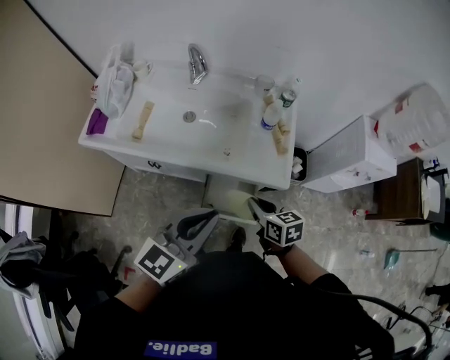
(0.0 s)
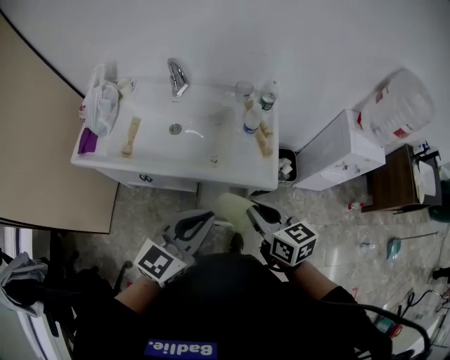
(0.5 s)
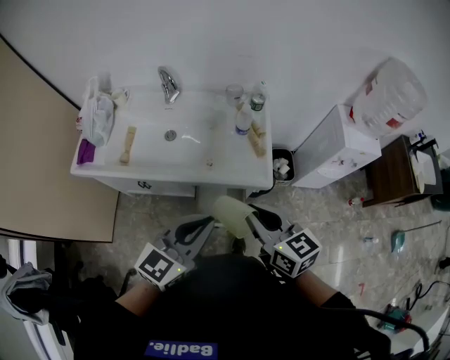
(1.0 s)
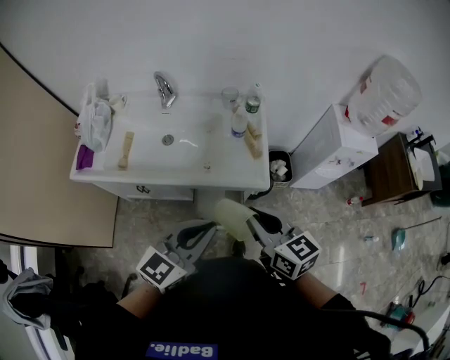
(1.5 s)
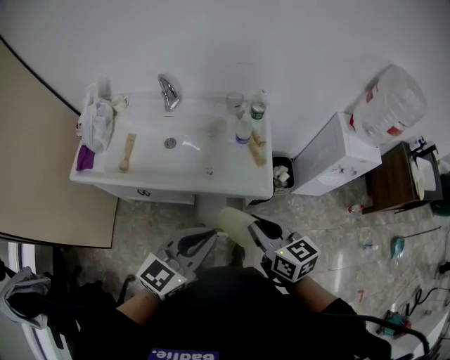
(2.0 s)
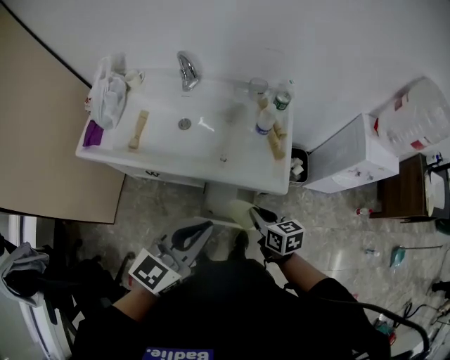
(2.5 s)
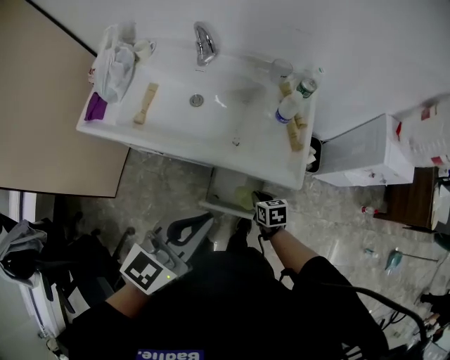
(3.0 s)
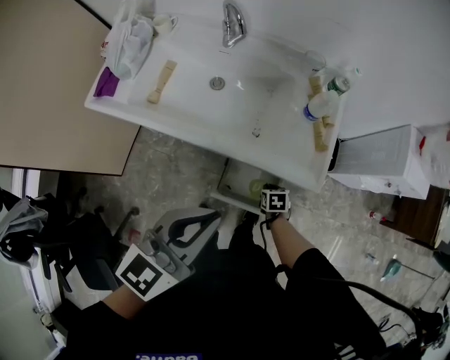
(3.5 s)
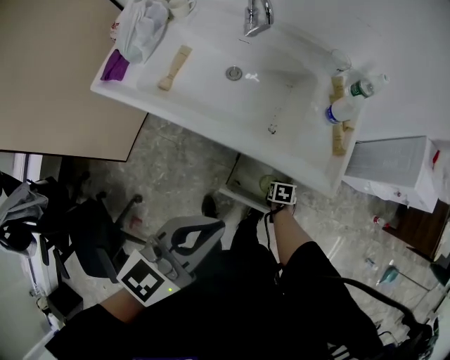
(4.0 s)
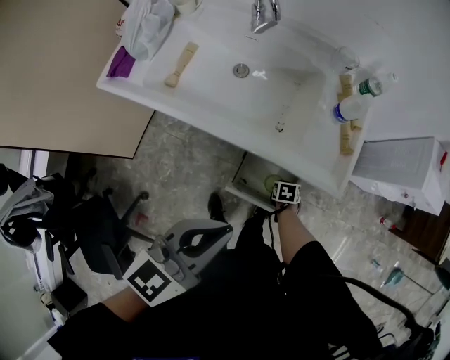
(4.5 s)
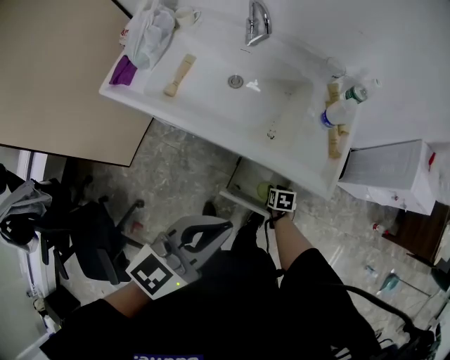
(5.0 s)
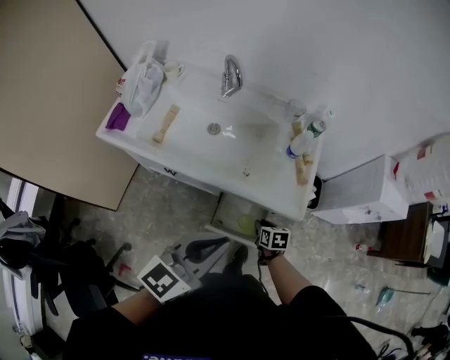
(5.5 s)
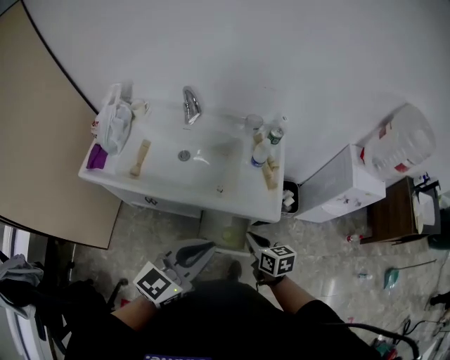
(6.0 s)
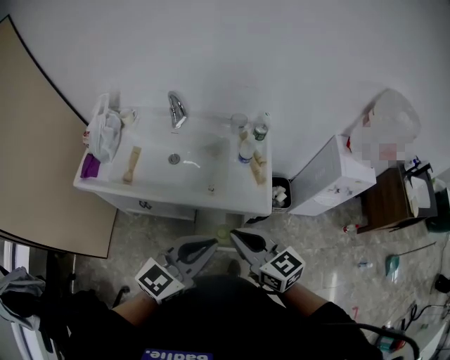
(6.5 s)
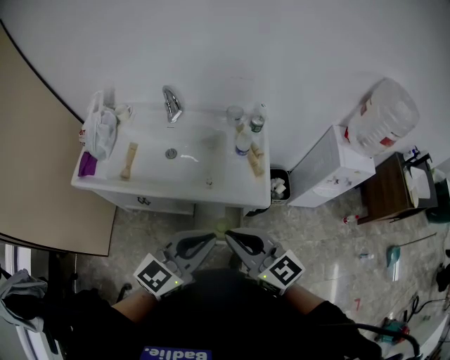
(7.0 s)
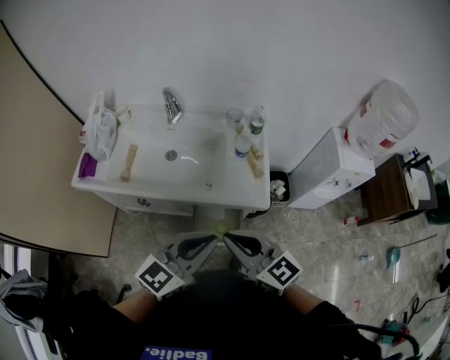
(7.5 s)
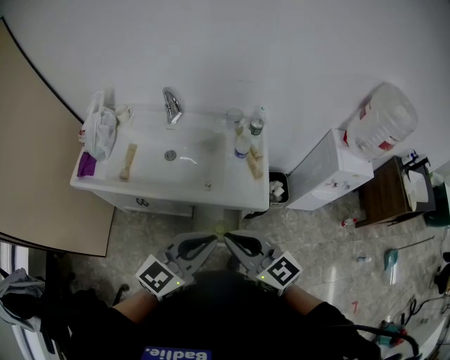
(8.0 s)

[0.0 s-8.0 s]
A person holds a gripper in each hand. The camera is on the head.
0.0 to 2.0 s: The left gripper shifts about 5 cm to the right; the right gripper is displaced upward by roughly 15 cm.
2.0 to 4.0 s: The left gripper changes place by some 15 cm; the right gripper heads downward, covering approximately 50 cm, and tilts its fingers some 60 degrees downward.
4.0 to 6.0 s: The right gripper shifts roughly 35 cm upward, tilts its fingers approximately 40 degrees upward, and opens and closes again. Meanwhile the left gripper shifts some 5 cm upward.
6.0 to 8.0 s: The right gripper heads upward, covering about 20 cm, and turns by roughly 40 degrees.

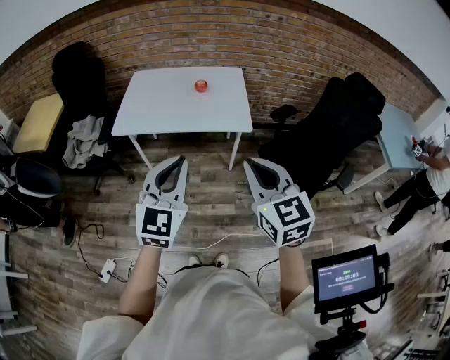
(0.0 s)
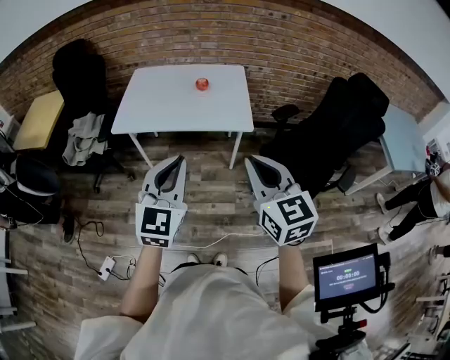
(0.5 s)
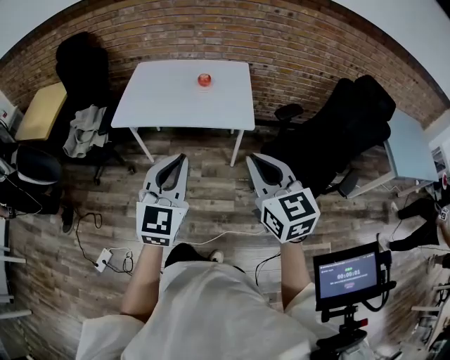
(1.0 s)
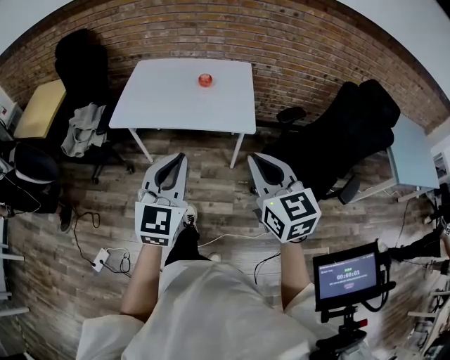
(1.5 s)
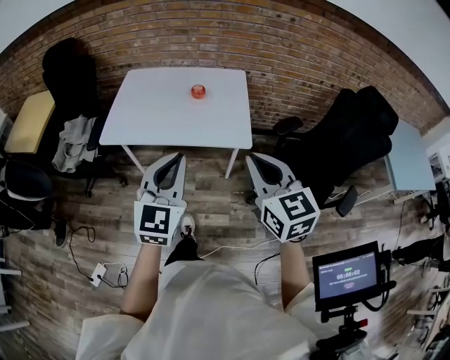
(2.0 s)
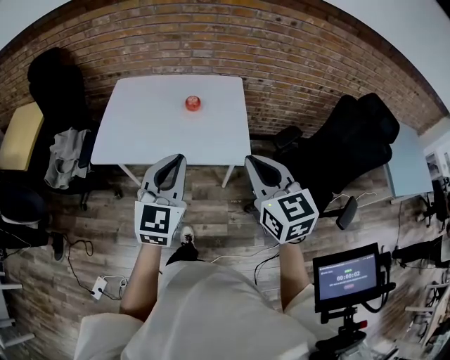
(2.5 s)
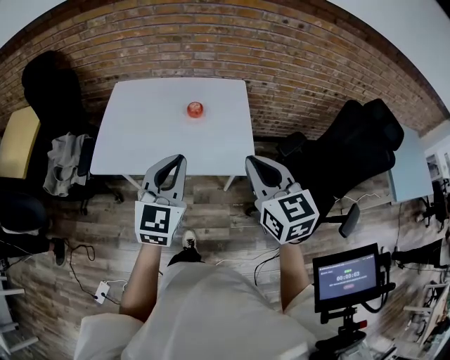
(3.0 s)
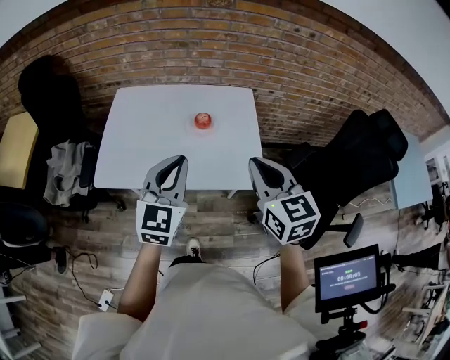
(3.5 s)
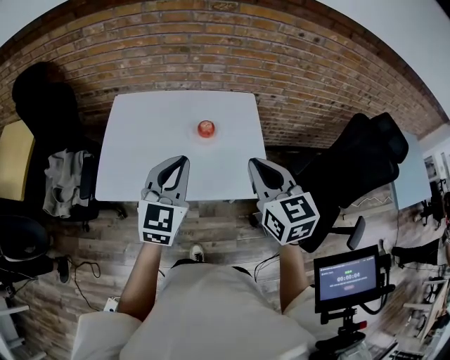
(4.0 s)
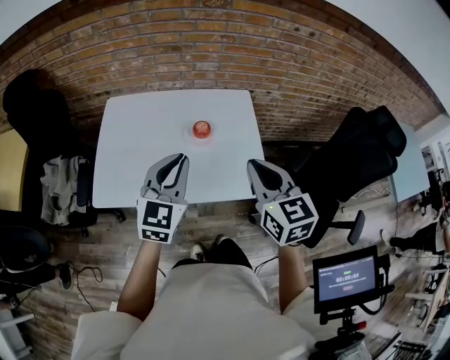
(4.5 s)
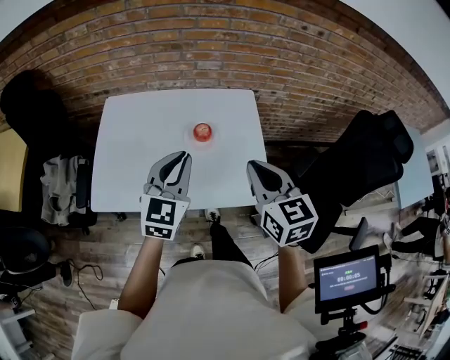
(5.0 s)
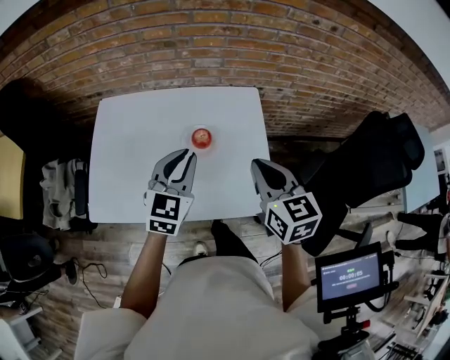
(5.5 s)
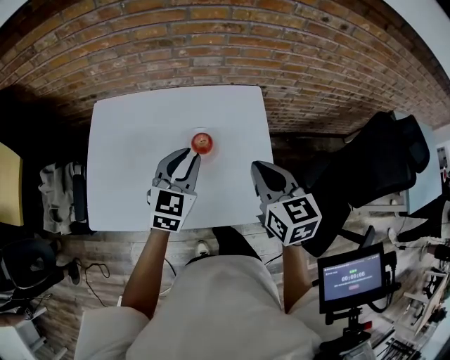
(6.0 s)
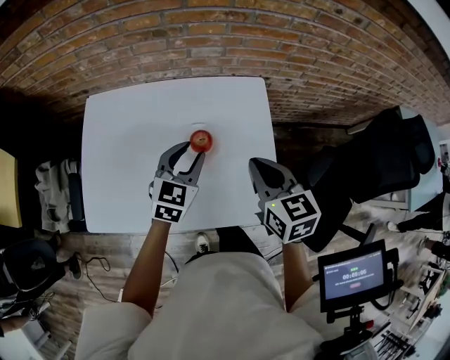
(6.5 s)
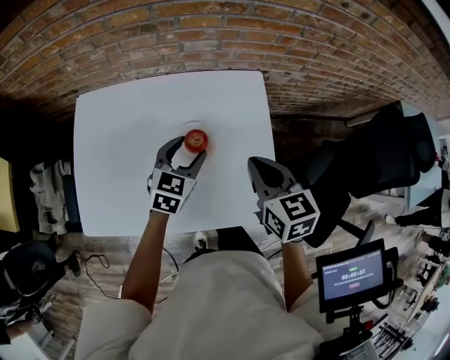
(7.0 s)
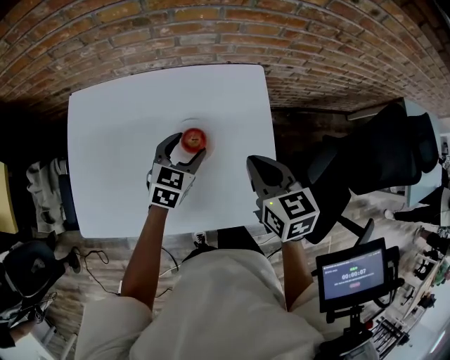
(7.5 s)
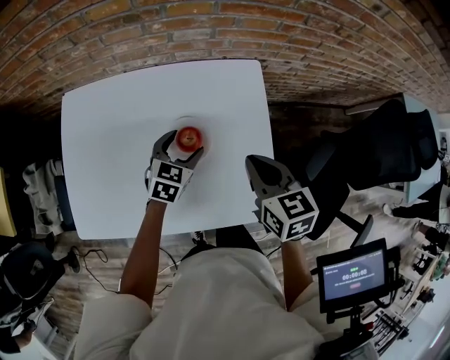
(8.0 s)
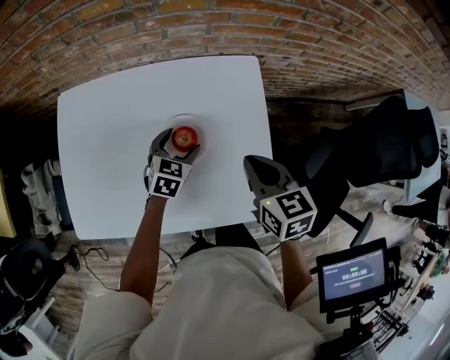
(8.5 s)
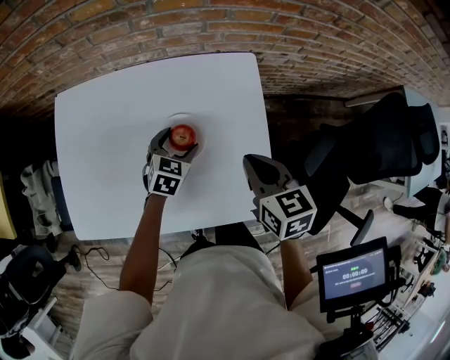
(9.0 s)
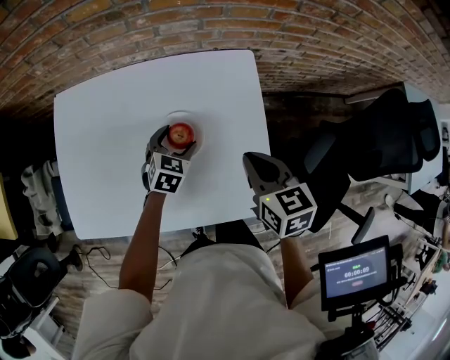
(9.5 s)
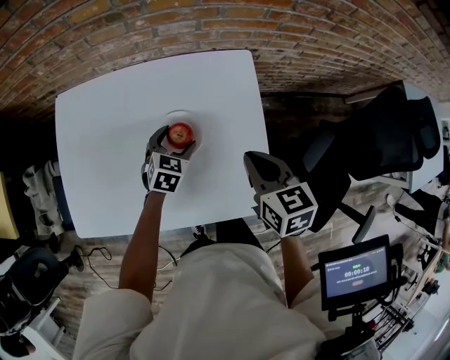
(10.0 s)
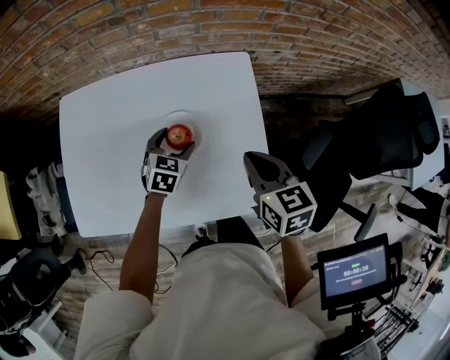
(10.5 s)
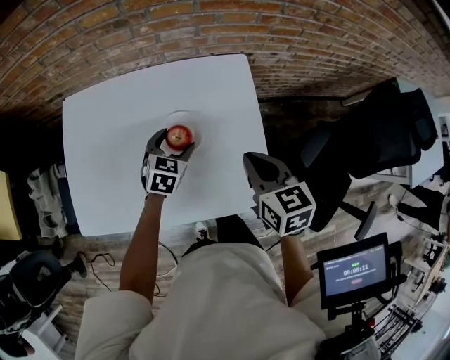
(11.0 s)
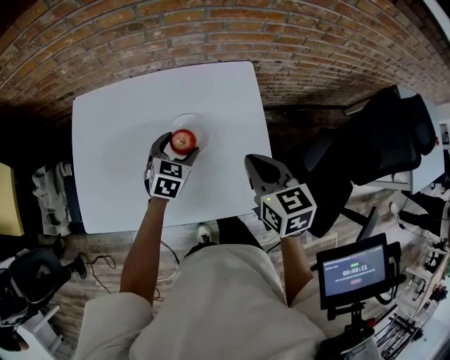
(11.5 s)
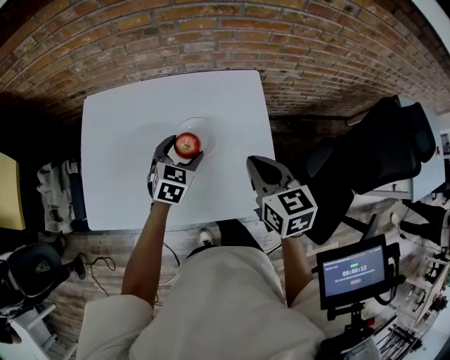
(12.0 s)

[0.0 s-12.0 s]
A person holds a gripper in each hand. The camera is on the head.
0.0 to 2.0 s: Both grippers travel together forward, approximately 15 cm.
2.0 to 4.0 s: Both grippers move forward, about 30 cm.
4.0 to 6.0 s: Both grippers move forward and downward, about 20 cm.
6.0 to 8.0 s: The right gripper travels downward and forward by roughly 10 cm. The left gripper moves downward and forward, about 20 cm, rotates about 20 degrees, and opens its fingers.
8.0 to 10.0 s: The grippers stay close to where they were, moving slightly.
10.0 to 12.0 s: The grippers both shift upward by roughly 10 cm.

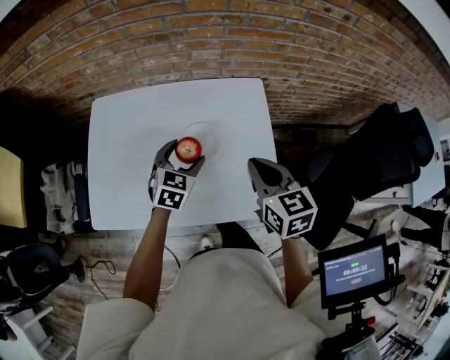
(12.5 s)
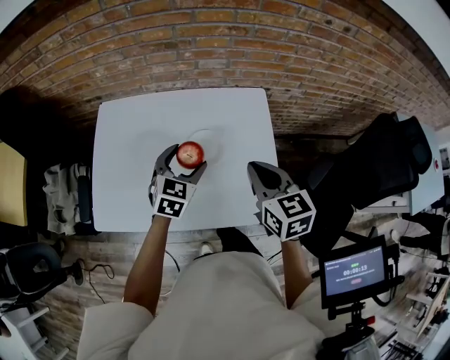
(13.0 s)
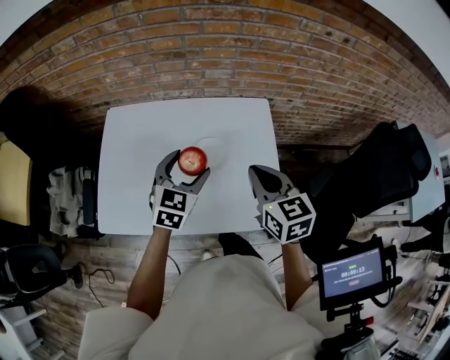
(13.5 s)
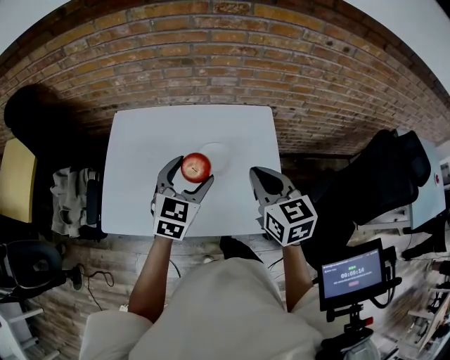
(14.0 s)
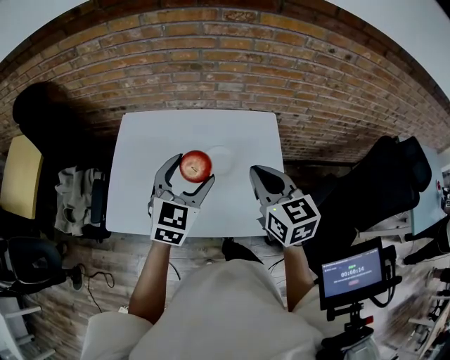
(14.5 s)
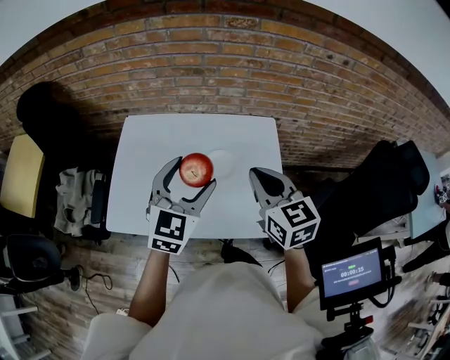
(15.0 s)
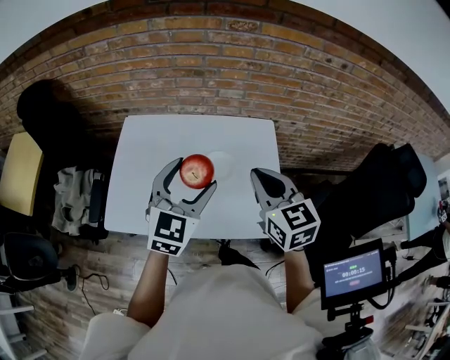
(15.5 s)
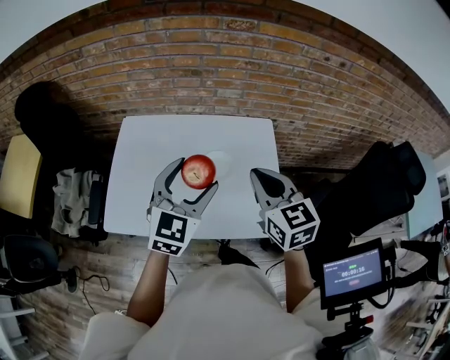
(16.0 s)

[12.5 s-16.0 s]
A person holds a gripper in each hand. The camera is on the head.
12.5 to 14.5 s: The right gripper travels upward by roughly 10 cm, while the left gripper travels upward and backward by approximately 20 cm.
14.5 to 16.0 s: The grippers stay close to where they were, moving slightly.

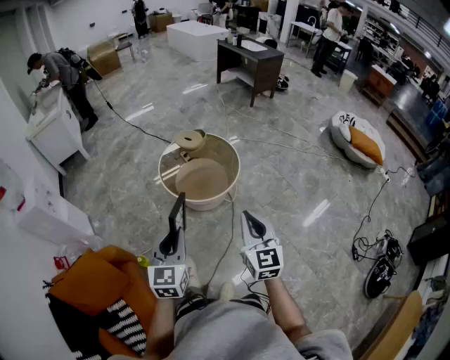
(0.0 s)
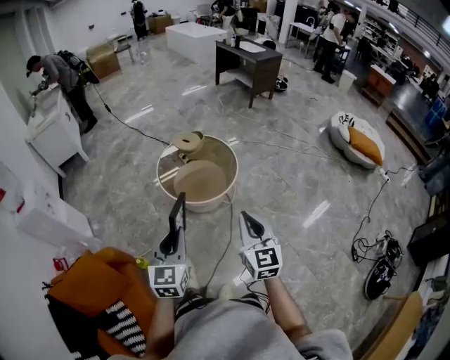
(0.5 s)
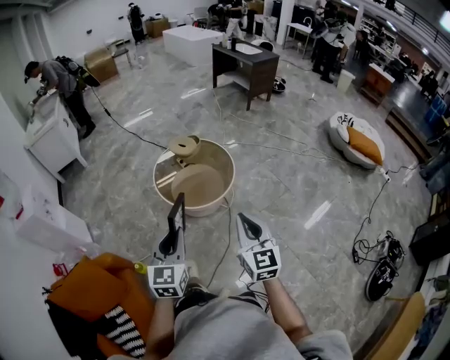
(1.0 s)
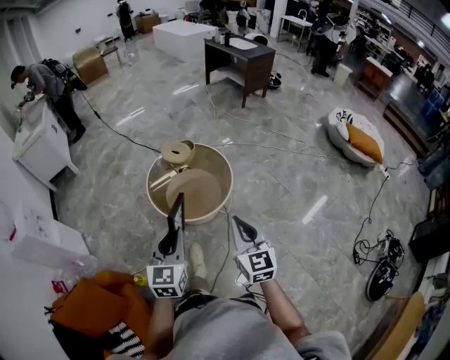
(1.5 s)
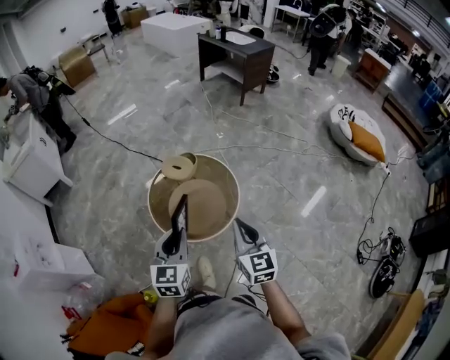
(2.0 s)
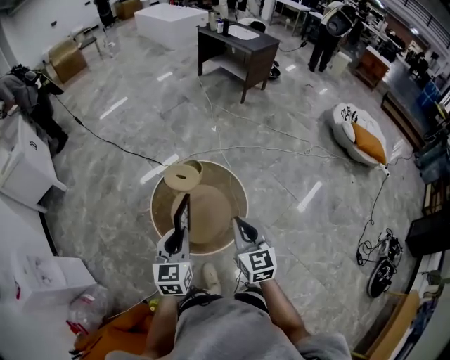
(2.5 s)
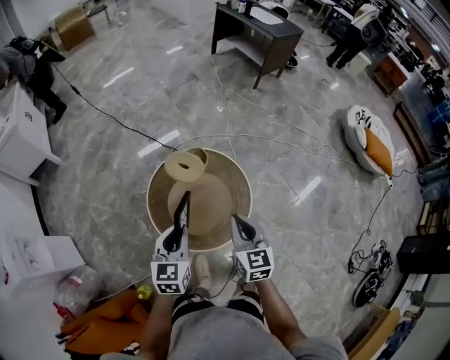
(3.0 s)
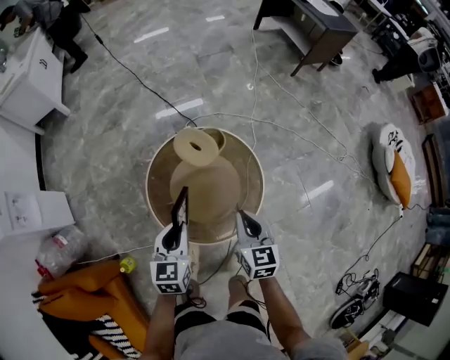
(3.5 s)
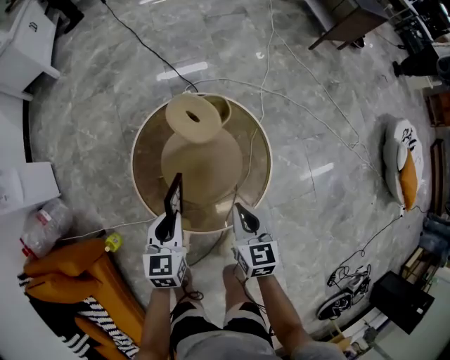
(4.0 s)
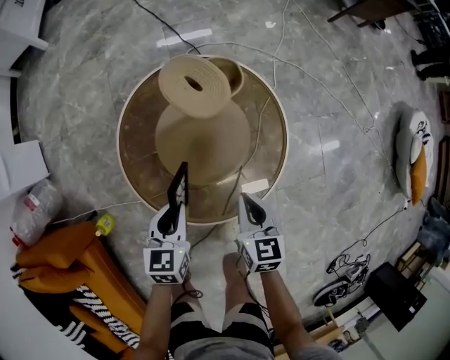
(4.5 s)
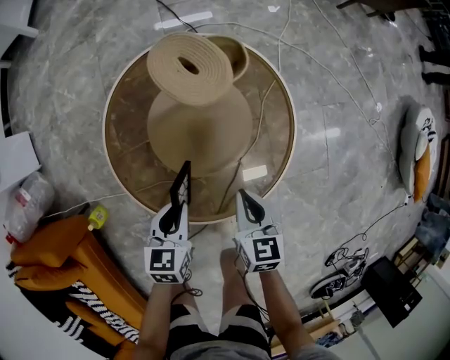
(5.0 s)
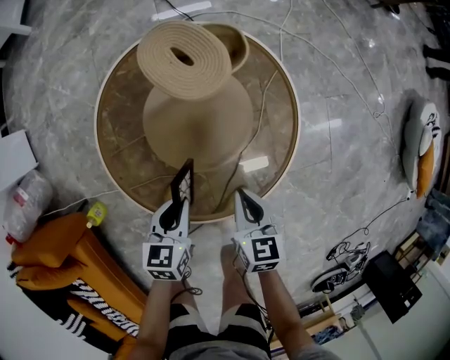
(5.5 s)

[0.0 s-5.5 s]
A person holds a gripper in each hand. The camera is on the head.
0.0 to 2.0 s: The grippers both shift forward by some 35 cm.
2.0 to 3.5 s: The grippers both shift forward and downward by about 35 cm. The right gripper swivels roughly 20 degrees. Meanwhile the left gripper turns by about 20 degrees.
3.5 to 5.5 s: Both grippers move downward, about 35 cm. The left gripper rotates approximately 20 degrees.
